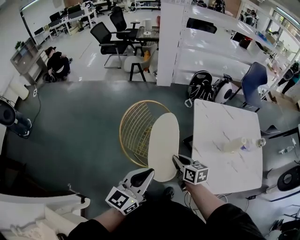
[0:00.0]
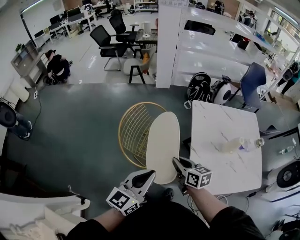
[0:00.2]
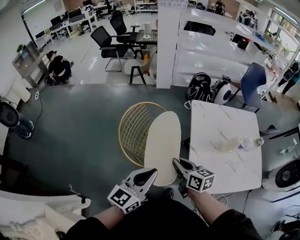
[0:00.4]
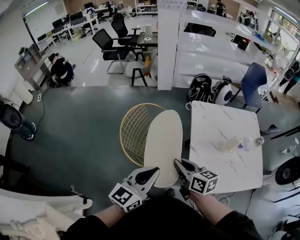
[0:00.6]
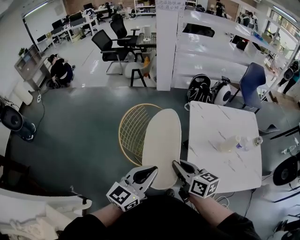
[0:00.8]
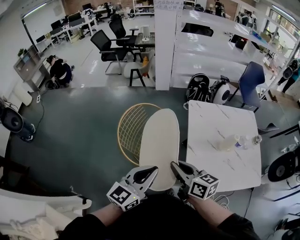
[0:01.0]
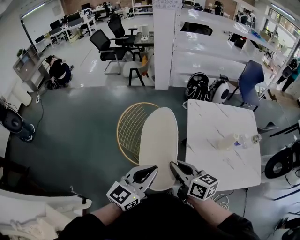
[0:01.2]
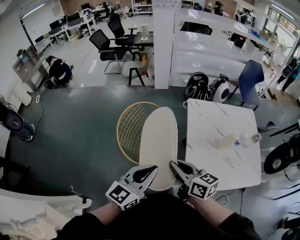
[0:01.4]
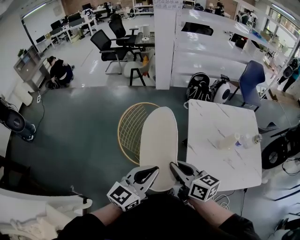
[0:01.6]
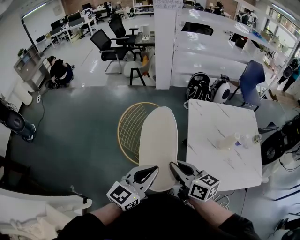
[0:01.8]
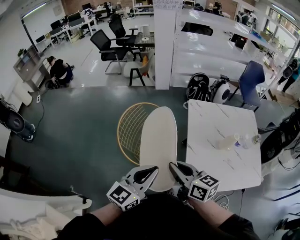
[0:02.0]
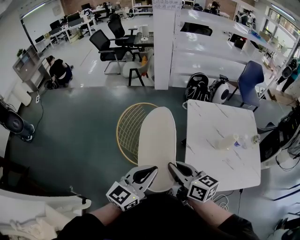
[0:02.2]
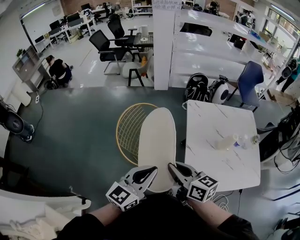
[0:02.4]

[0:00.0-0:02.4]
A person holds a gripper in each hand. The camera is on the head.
0:00.0 to 0:01.2: The right gripper heads upward and backward, covering some 15 cm. The left gripper moves to the right, about 5 cm.
0:01.2 to 0:02.4: The two grippers keep their place.

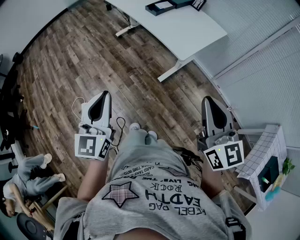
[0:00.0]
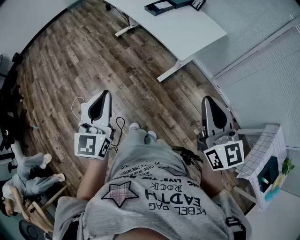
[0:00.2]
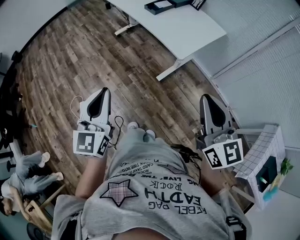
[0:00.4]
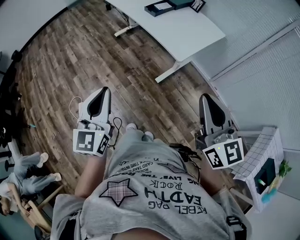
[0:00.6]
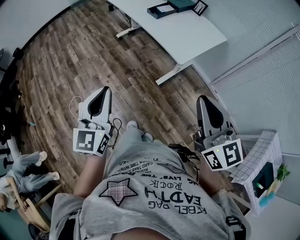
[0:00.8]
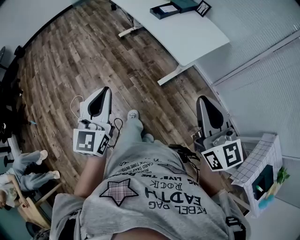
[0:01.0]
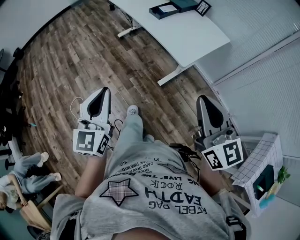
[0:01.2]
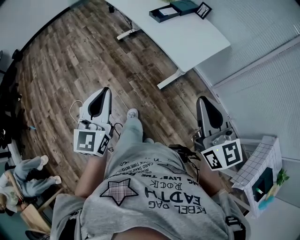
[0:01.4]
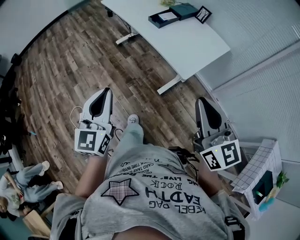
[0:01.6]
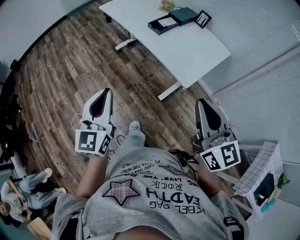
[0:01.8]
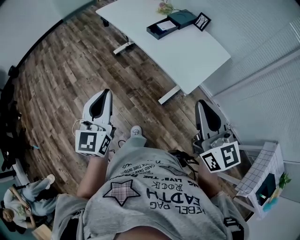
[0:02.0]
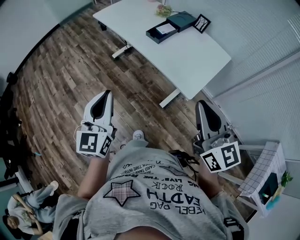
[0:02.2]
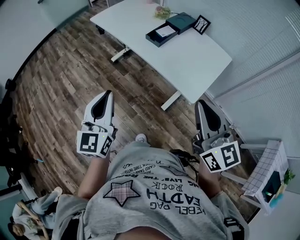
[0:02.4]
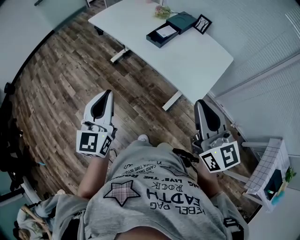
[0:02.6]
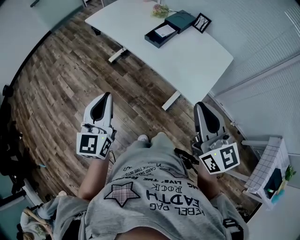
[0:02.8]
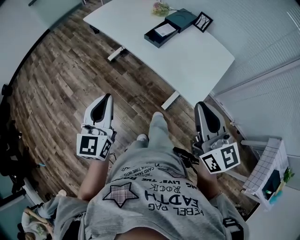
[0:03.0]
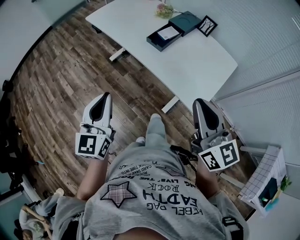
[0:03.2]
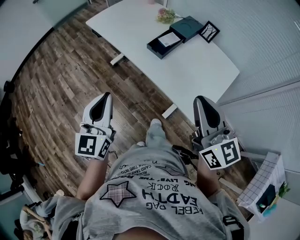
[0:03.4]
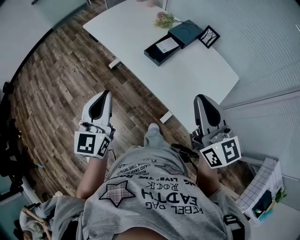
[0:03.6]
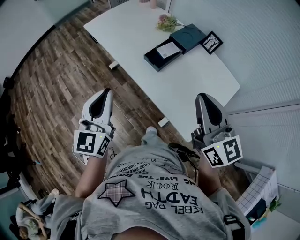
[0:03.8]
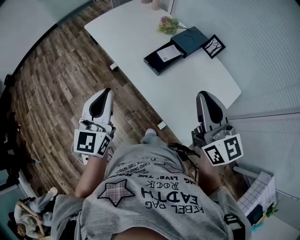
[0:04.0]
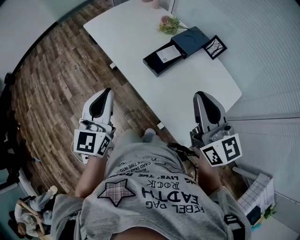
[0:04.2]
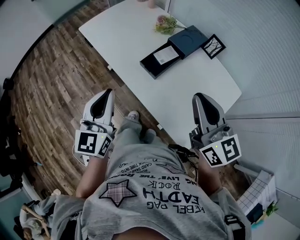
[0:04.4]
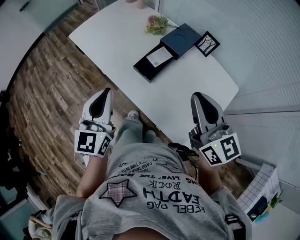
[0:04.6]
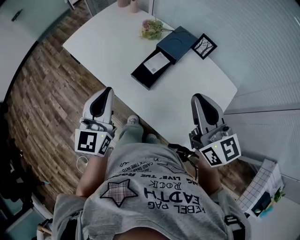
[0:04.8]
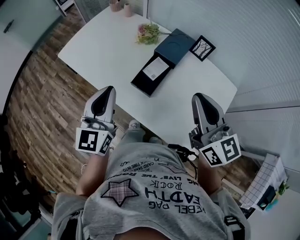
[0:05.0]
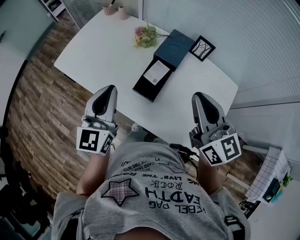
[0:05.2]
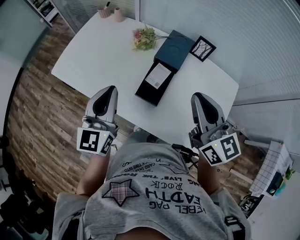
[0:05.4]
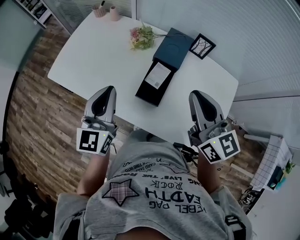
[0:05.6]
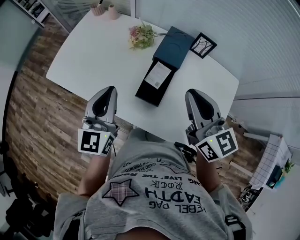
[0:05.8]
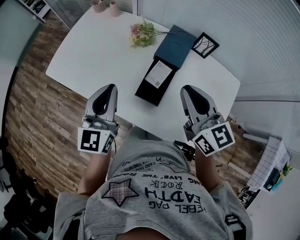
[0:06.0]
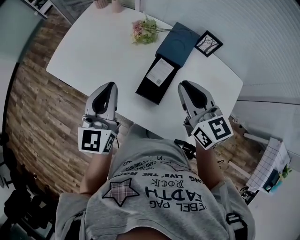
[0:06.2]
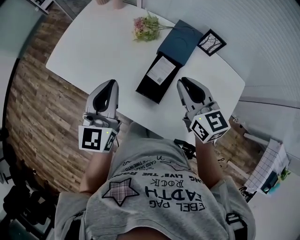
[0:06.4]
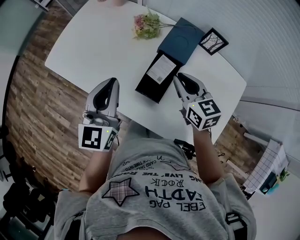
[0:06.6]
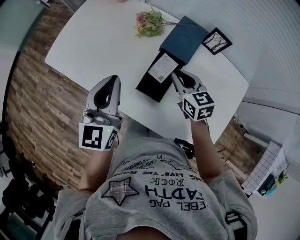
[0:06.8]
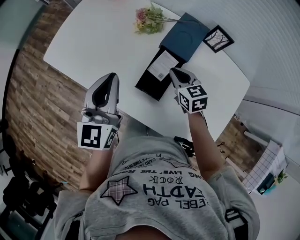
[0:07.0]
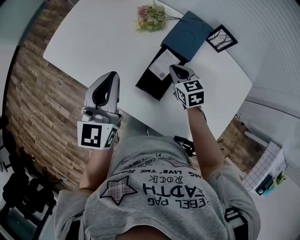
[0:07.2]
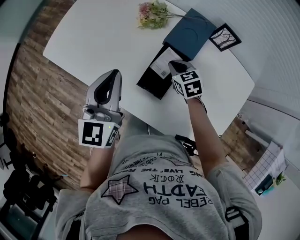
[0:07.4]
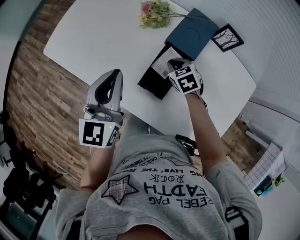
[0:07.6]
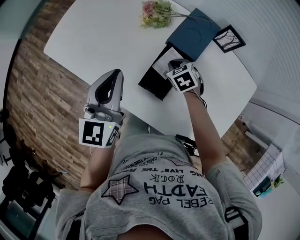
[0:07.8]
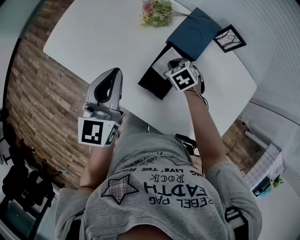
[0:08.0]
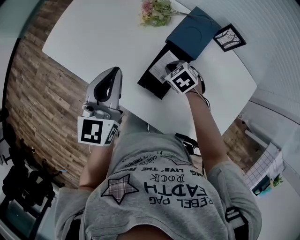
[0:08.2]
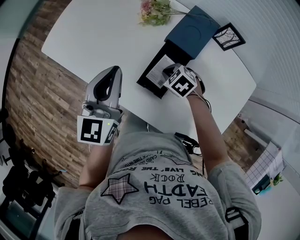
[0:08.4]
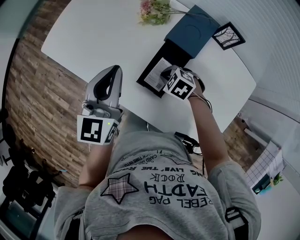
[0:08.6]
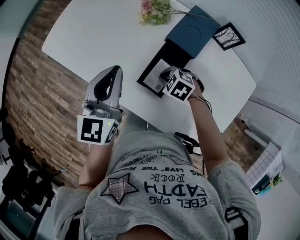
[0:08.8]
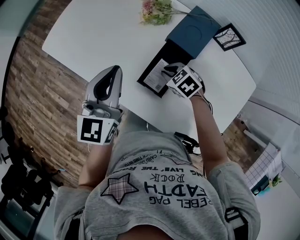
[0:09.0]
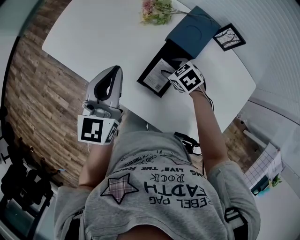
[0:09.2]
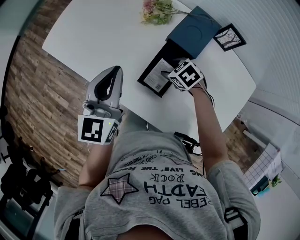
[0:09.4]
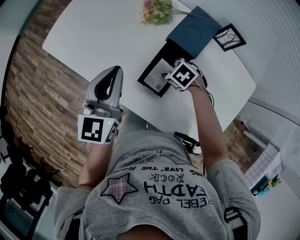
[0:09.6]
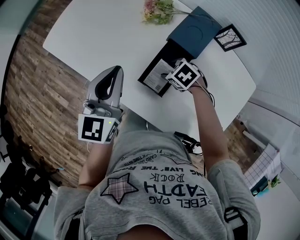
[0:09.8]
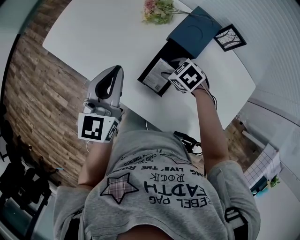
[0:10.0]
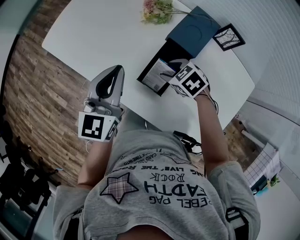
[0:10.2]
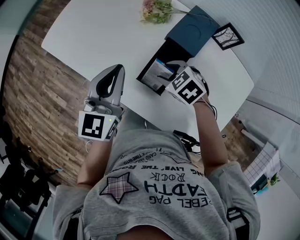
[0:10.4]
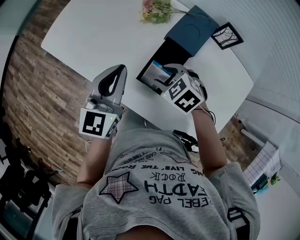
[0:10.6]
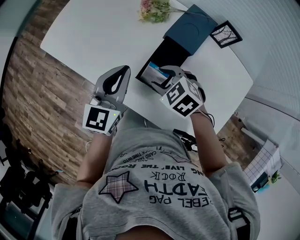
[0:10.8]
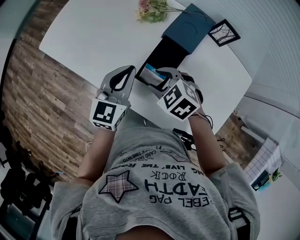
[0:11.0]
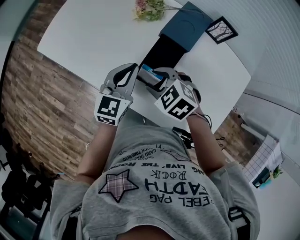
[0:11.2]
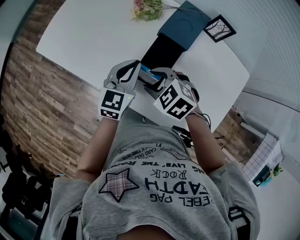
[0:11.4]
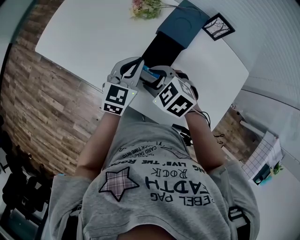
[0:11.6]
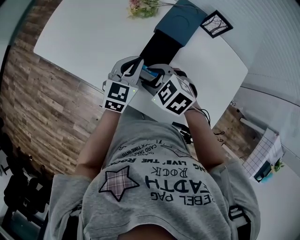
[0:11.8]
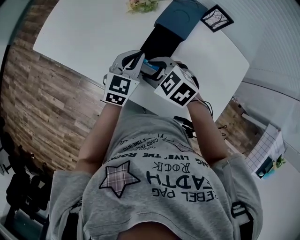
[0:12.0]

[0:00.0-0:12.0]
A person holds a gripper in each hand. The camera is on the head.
0:00.0 to 0:01.6: Both grippers move forward, approximately 10 cm.
0:01.6 to 0:03.0: Both grippers travel together forward, some 20 cm.
0:03.0 to 0:04.4: The two grippers go about 25 cm forward.
0:04.4 to 0:06.0: The grippers both shift forward by roughly 25 cm. The left gripper turns by about 20 degrees.
0:06.0 to 0:07.6: The right gripper moves downward and forward, some 30 cm, and angles its fingers downward, by about 40 degrees, while the left gripper moves about 5 cm.
0:07.6 to 0:09.0: The right gripper changes place by about 5 cm, and swivels roughly 20 degrees.
0:09.0 to 0:10.4: The right gripper shifts roughly 5 cm upward, and opens its fingers.
0:10.4 to 0:12.0: The right gripper ends up some 5 cm from where it was. The left gripper travels downward and to the right by about 15 cm, and turns by roughly 20 degrees.

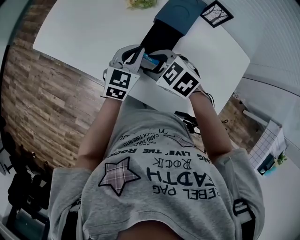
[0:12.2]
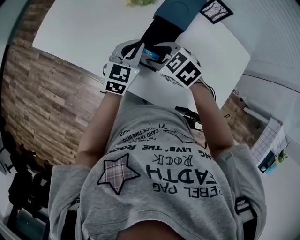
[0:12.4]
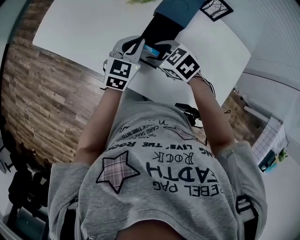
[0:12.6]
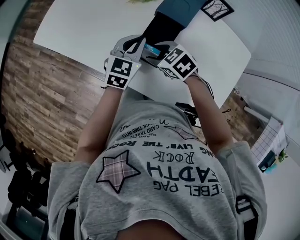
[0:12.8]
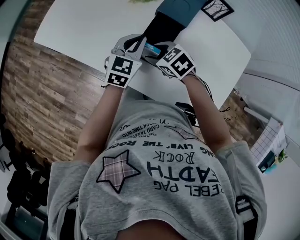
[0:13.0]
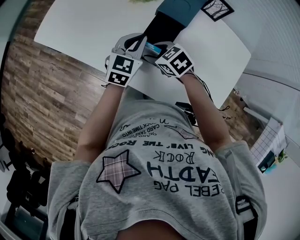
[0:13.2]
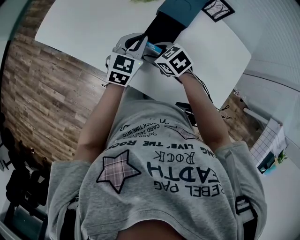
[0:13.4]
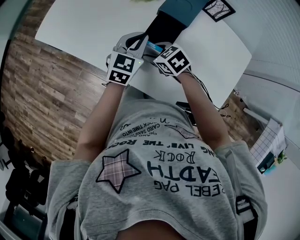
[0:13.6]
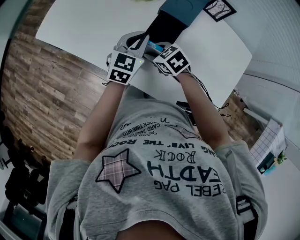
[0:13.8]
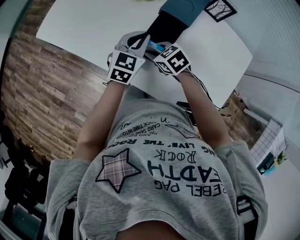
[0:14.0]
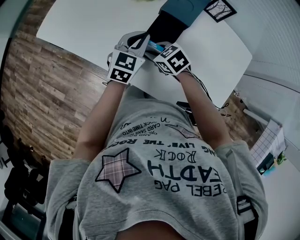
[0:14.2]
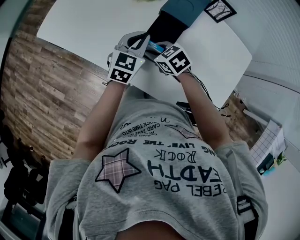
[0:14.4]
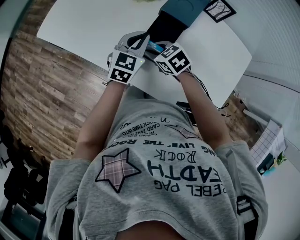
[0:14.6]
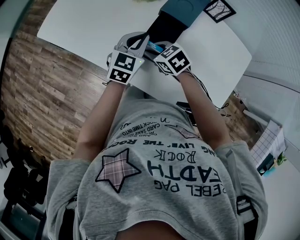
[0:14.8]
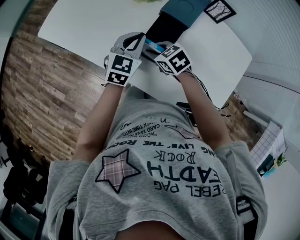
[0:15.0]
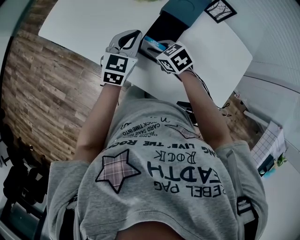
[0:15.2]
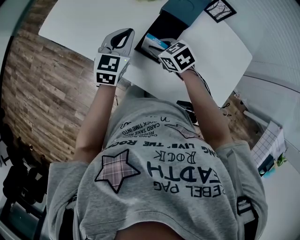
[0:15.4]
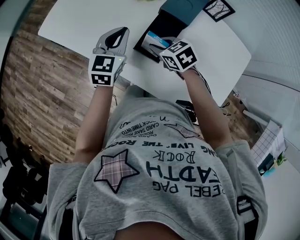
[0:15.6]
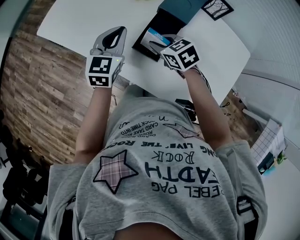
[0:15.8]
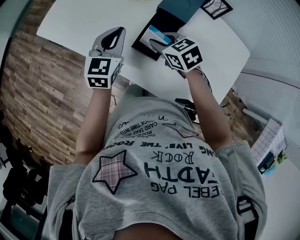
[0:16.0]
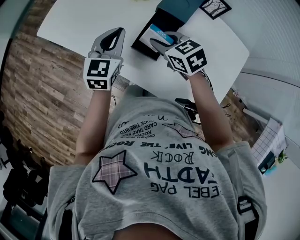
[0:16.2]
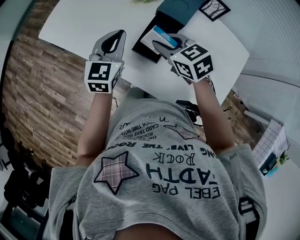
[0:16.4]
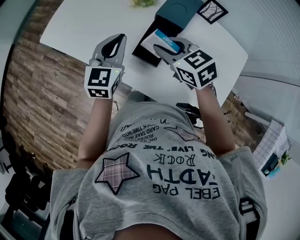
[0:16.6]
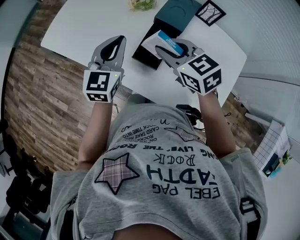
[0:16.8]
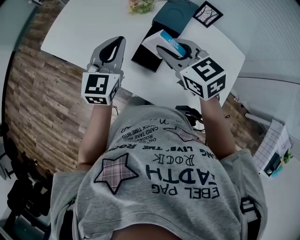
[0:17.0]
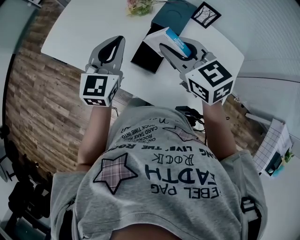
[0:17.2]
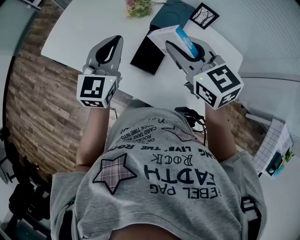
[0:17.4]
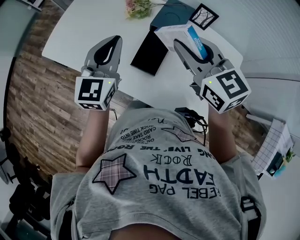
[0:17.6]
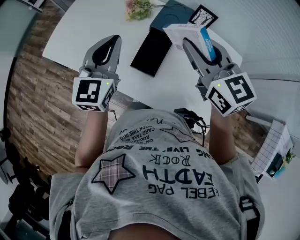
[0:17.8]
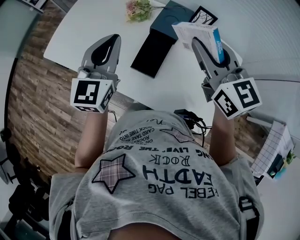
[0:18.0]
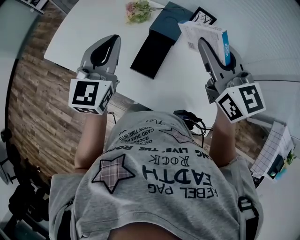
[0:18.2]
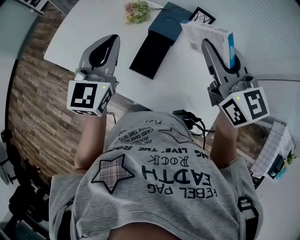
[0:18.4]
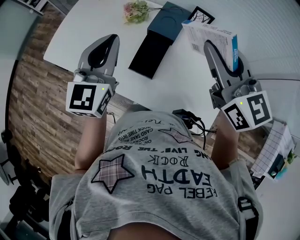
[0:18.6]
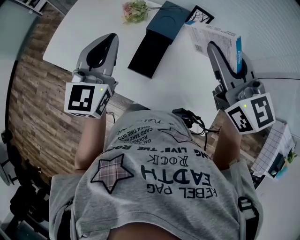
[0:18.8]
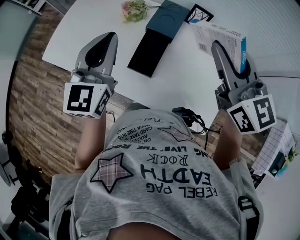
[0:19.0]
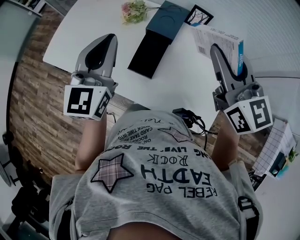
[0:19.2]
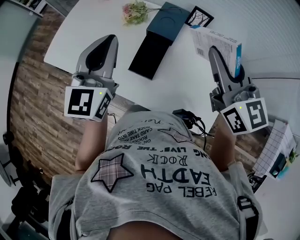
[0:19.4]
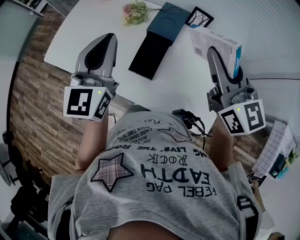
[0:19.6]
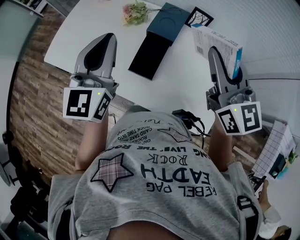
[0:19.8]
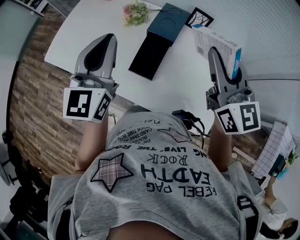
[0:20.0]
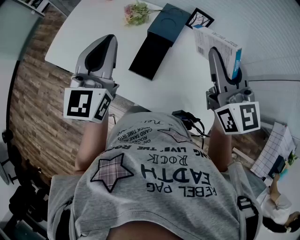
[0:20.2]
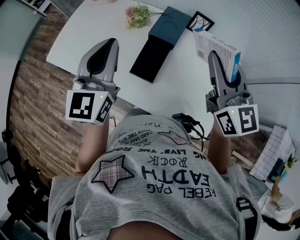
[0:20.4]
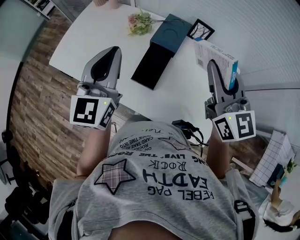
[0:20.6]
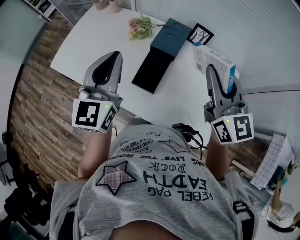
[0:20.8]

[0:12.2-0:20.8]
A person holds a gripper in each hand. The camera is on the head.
0:12.2 to 0:13.6: The right gripper is displaced downward by some 10 cm.
0:13.6 to 0:15.0: The right gripper closes up.
0:15.0 to 0:16.6: The right gripper goes roughly 15 cm upward; the left gripper heads upward and to the left, covering about 10 cm.
0:16.6 to 0:18.0: The left gripper is displaced upward by approximately 10 cm; the right gripper travels upward and to the right by some 20 cm, and swivels roughly 30 degrees.
0:18.0 to 0:19.4: The right gripper ends up approximately 5 cm from where it was.
0:19.4 to 0:20.8: The grippers move only a little.

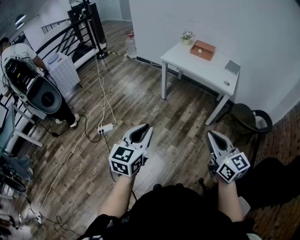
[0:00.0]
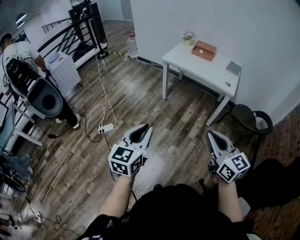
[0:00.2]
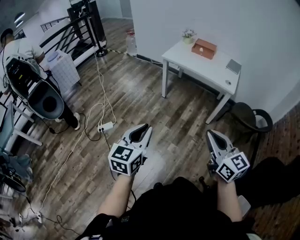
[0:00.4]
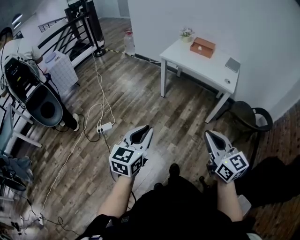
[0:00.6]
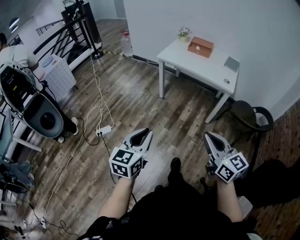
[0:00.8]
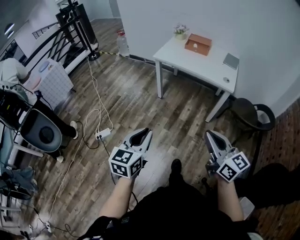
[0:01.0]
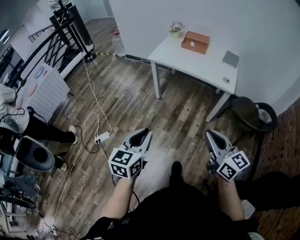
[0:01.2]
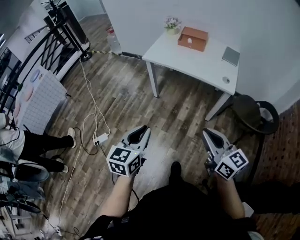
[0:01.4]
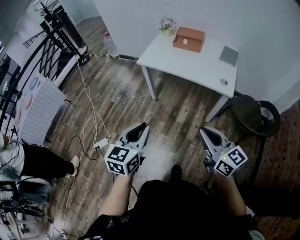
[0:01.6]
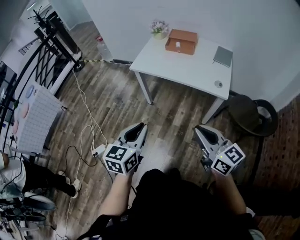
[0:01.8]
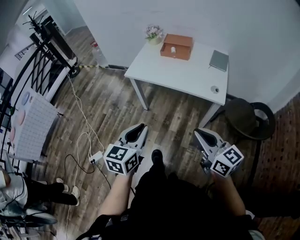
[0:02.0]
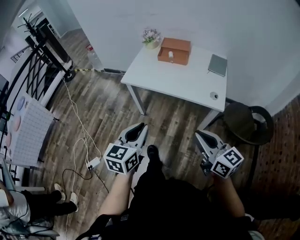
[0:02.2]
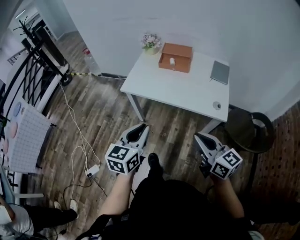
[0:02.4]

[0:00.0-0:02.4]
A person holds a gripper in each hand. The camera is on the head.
0:00.0 to 0:01.2: The two grippers go about 15 cm forward.
0:01.2 to 0:02.4: The grippers both shift forward by some 30 cm.
